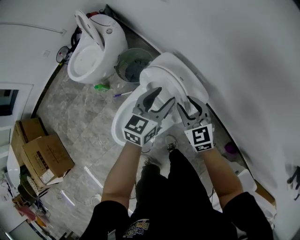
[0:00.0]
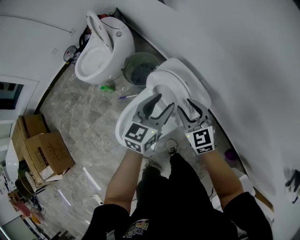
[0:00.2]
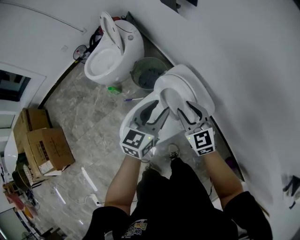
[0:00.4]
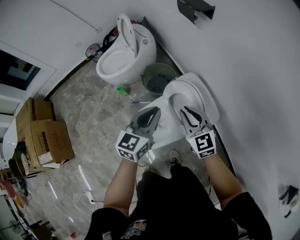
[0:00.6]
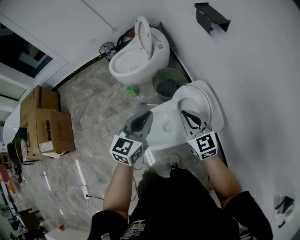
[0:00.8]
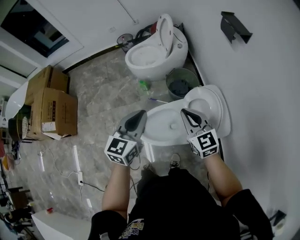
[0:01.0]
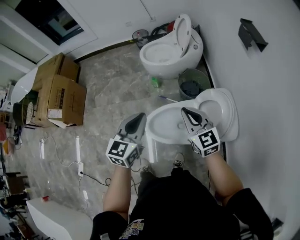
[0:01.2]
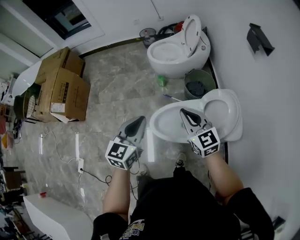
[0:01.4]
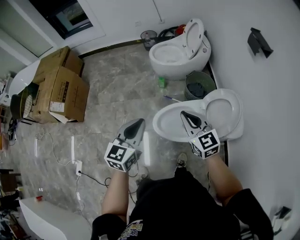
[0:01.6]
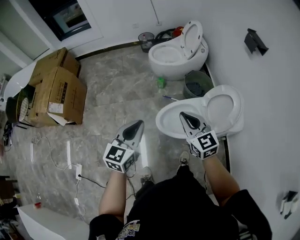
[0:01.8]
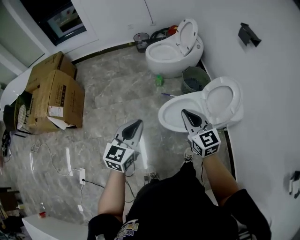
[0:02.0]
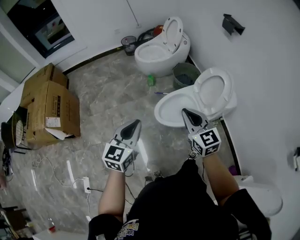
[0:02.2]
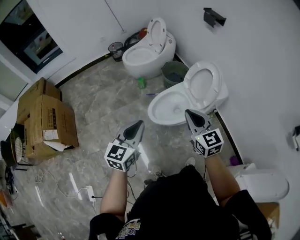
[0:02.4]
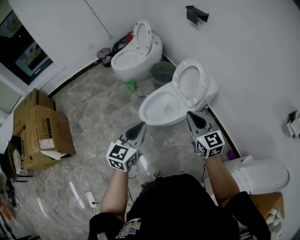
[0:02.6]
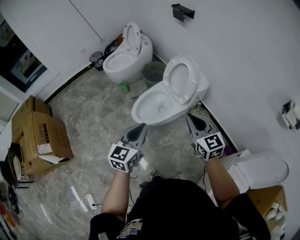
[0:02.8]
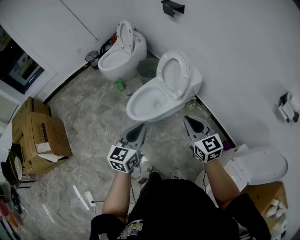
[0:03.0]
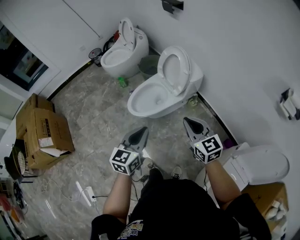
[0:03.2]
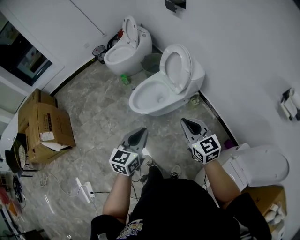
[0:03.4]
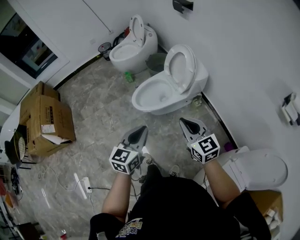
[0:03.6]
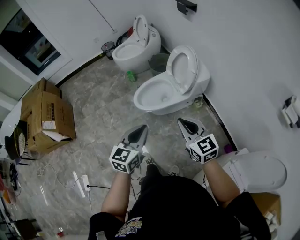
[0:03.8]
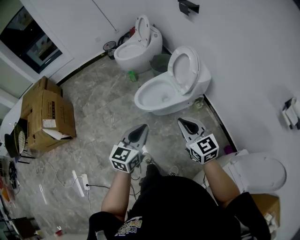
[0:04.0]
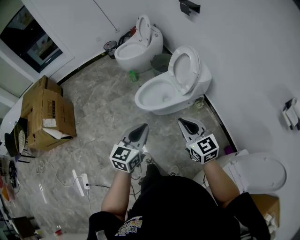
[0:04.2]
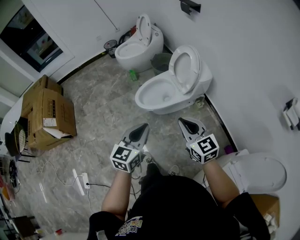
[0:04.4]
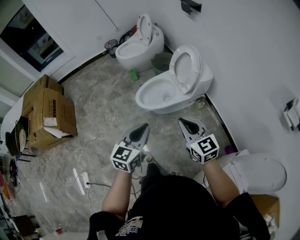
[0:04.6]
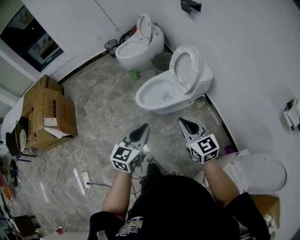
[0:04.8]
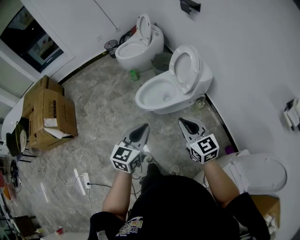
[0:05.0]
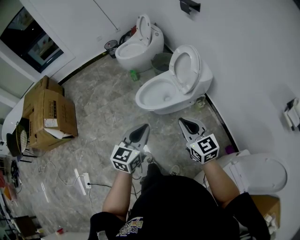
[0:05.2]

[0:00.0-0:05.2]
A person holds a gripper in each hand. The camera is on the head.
0:00.0 to 0:01.8: The two grippers travel together, roughly 50 cm. The right gripper swivels about 40 degrees, and closes, while the left gripper swivels some 40 degrees, and closes its fingers.
0:01.8 to 0:03.4: The left gripper moves some 30 cm, and rotates some 30 degrees, while the right gripper changes place by approximately 40 cm, and rotates roughly 30 degrees.
0:03.4 to 0:05.2: The grippers stay close to where they were, moving slightly.

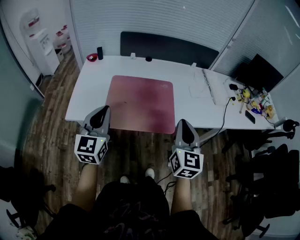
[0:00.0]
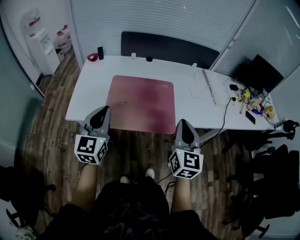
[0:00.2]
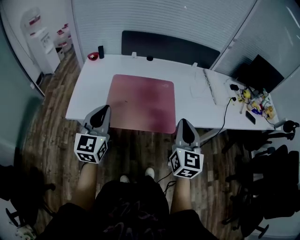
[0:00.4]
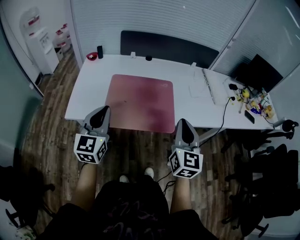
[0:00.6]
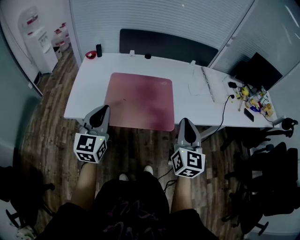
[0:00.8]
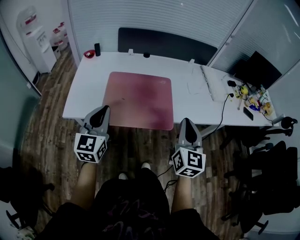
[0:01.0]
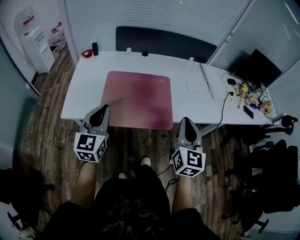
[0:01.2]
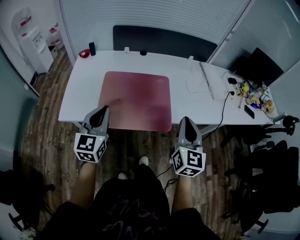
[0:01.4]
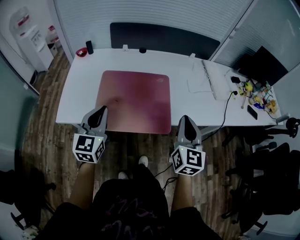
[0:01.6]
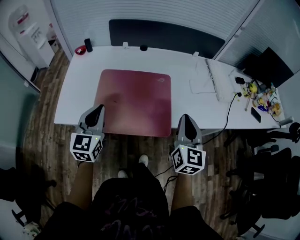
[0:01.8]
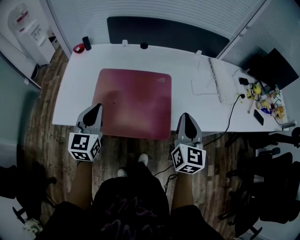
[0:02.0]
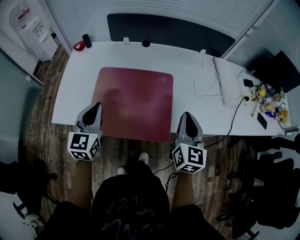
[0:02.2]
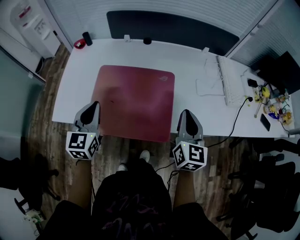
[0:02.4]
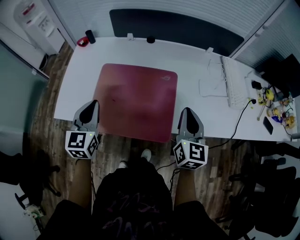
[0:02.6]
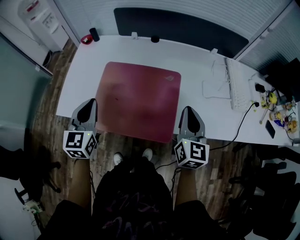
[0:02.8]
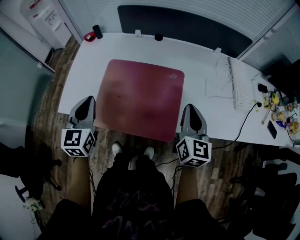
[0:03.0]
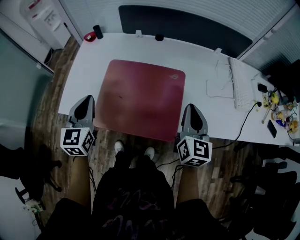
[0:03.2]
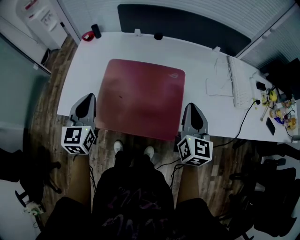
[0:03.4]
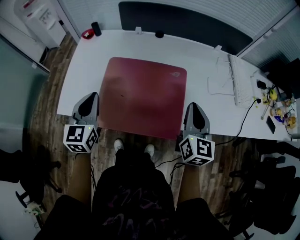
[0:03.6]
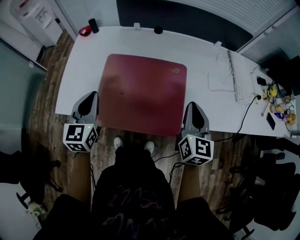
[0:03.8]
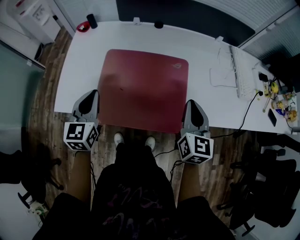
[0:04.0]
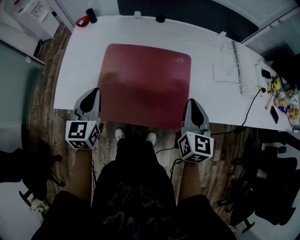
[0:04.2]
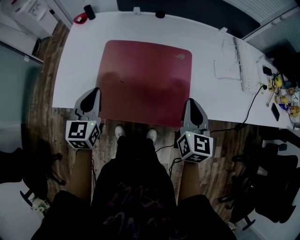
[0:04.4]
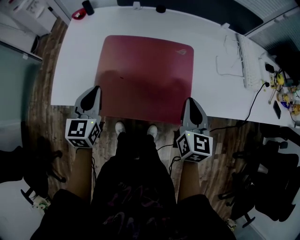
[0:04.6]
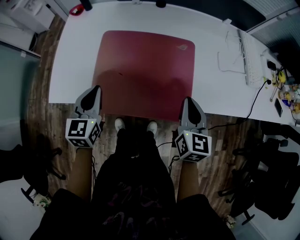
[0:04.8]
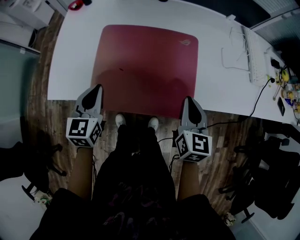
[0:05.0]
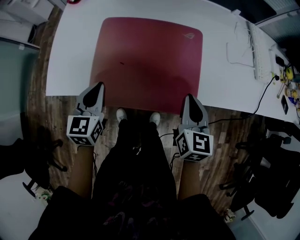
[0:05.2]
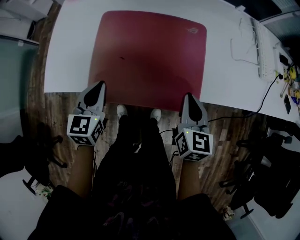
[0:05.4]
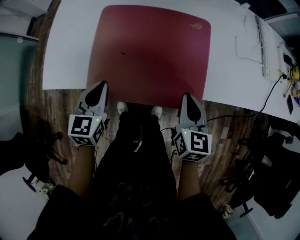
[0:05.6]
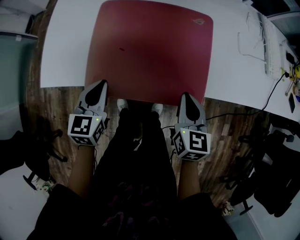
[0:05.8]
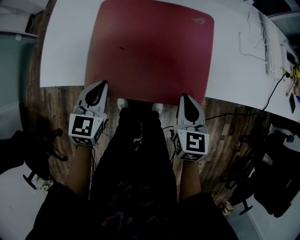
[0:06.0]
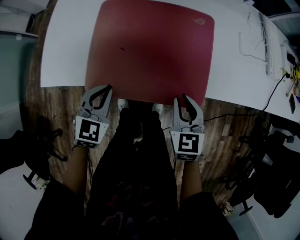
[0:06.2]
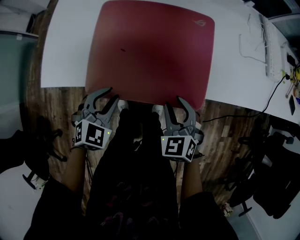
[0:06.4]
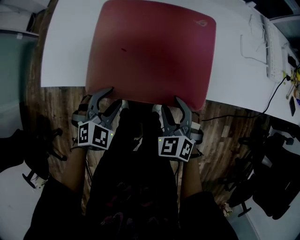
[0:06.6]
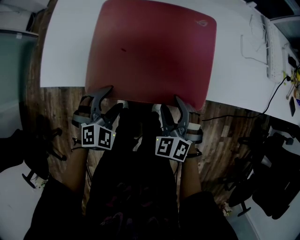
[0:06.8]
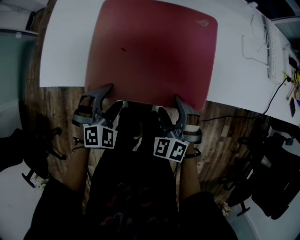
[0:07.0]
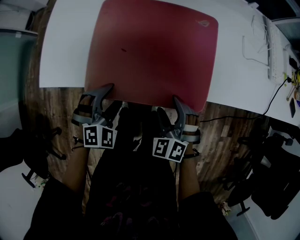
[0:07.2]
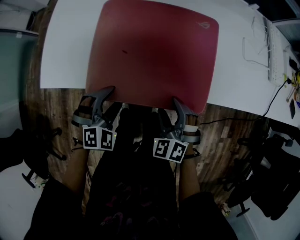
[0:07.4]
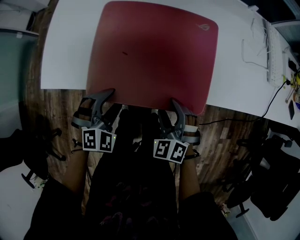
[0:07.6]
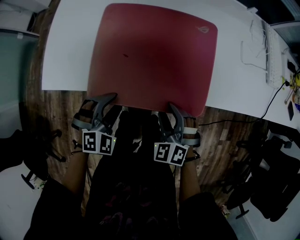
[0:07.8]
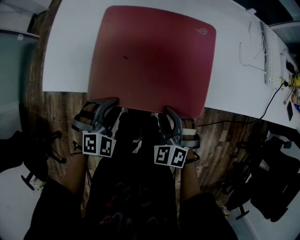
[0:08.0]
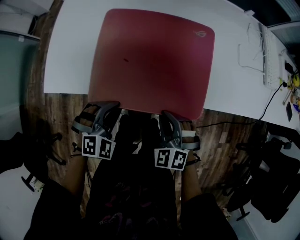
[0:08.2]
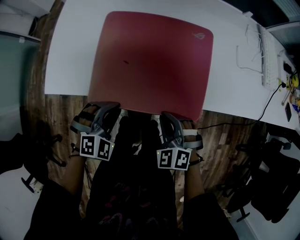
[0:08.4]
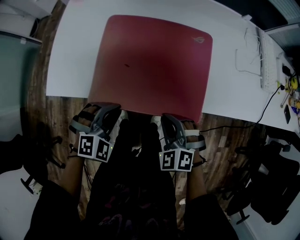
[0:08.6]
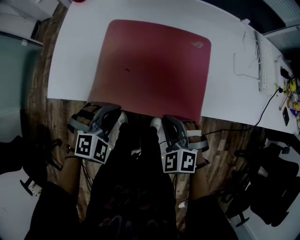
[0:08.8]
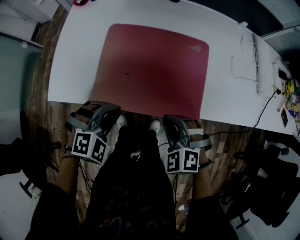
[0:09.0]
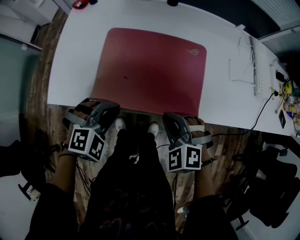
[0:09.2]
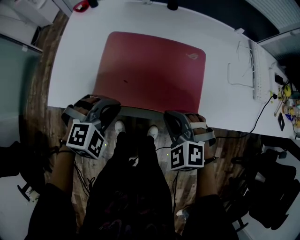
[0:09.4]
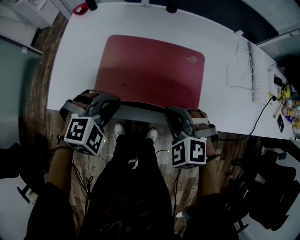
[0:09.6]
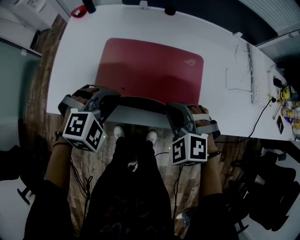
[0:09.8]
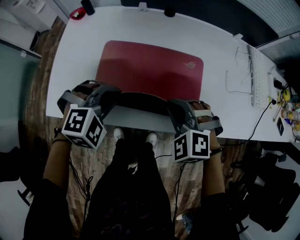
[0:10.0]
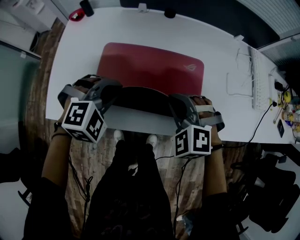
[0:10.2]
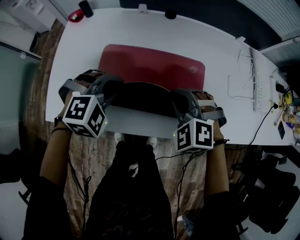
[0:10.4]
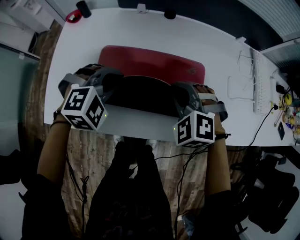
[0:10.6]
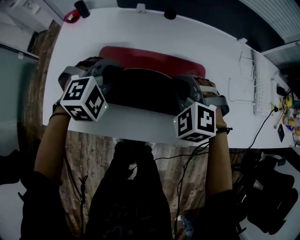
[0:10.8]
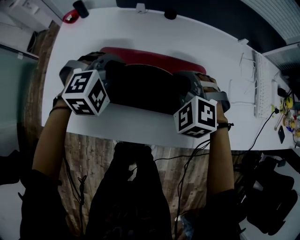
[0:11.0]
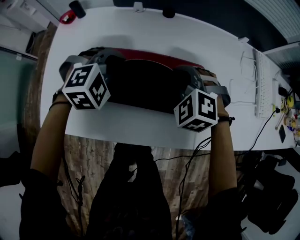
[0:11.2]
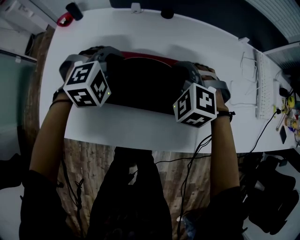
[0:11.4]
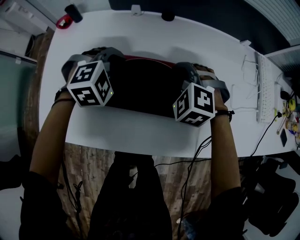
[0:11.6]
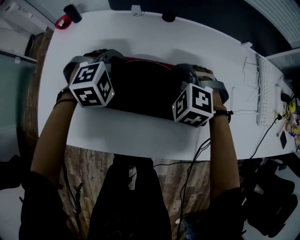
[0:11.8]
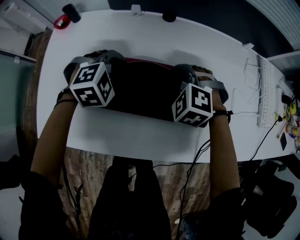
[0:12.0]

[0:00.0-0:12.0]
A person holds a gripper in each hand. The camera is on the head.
0:00.0 to 0:01.6: The right gripper is displaced forward by about 5 cm; the left gripper goes approximately 10 cm forward and downward.
0:01.6 to 0:03.0: The right gripper is displaced forward by about 15 cm, while the left gripper is displaced forward by some 10 cm.
0:03.0 to 0:04.4: The left gripper is displaced downward by some 10 cm; the right gripper shifts roughly 10 cm downward and to the left.
0:04.4 to 0:06.0: The left gripper shifts some 15 cm downward. Meanwhile the right gripper travels downward and backward by approximately 15 cm.
0:06.0 to 0:07.6: The left gripper changes place by about 5 cm, rolls clockwise, seen from behind, by about 50 degrees, and opens. Meanwhile the right gripper moves to the left, about 5 cm, rotates around the line of its fingers by some 50 degrees, counterclockwise from behind, and opens its fingers.
0:07.6 to 0:09.0: The grippers both shift upward by about 10 cm. The left gripper closes; the right gripper closes its fingers.
0:09.0 to 0:10.4: Both grippers move forward, roughly 20 cm.
0:10.4 to 0:12.0: Both grippers move forward and downward, roughly 20 cm.

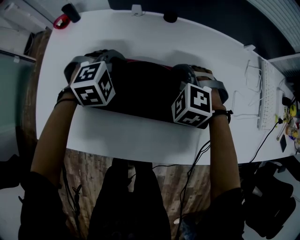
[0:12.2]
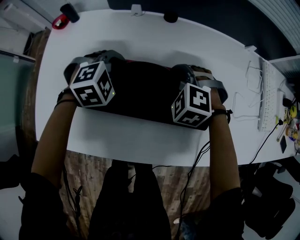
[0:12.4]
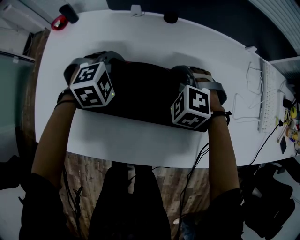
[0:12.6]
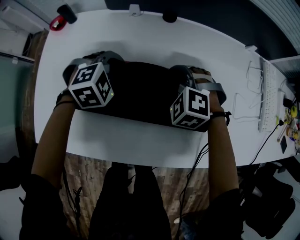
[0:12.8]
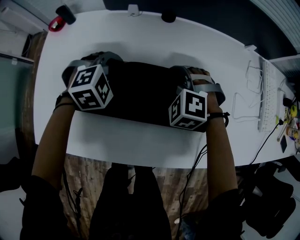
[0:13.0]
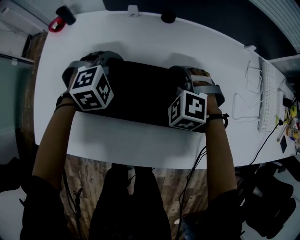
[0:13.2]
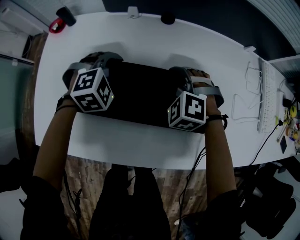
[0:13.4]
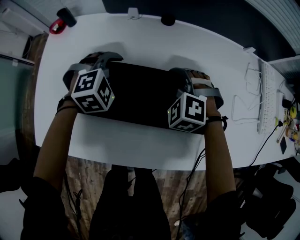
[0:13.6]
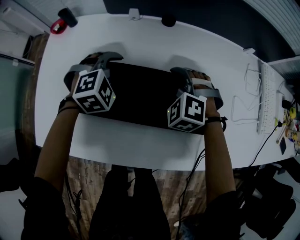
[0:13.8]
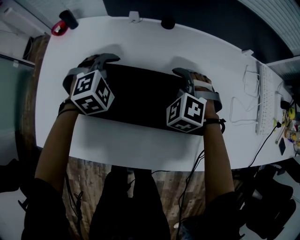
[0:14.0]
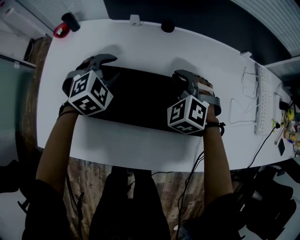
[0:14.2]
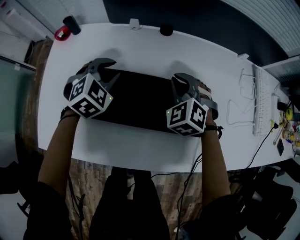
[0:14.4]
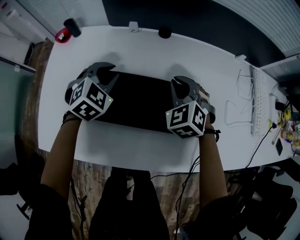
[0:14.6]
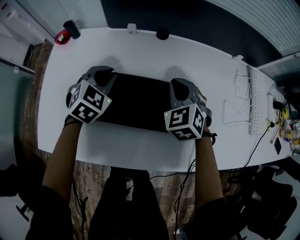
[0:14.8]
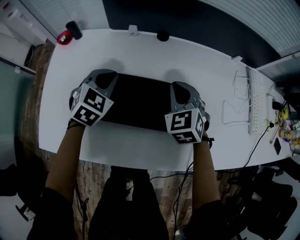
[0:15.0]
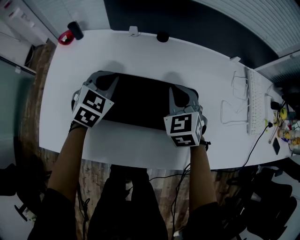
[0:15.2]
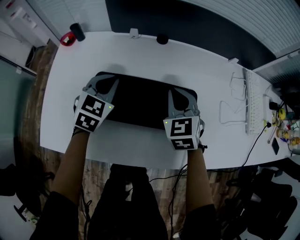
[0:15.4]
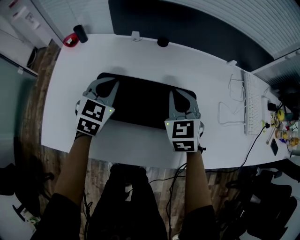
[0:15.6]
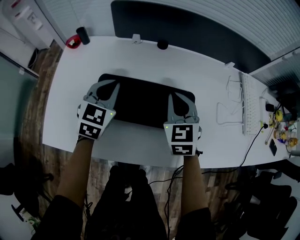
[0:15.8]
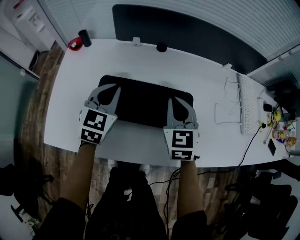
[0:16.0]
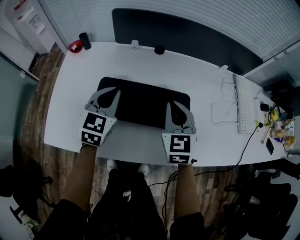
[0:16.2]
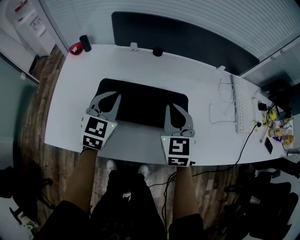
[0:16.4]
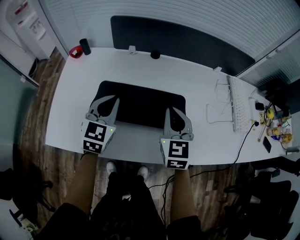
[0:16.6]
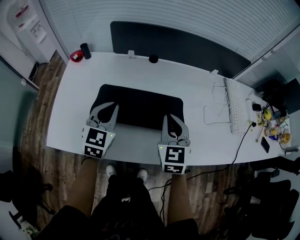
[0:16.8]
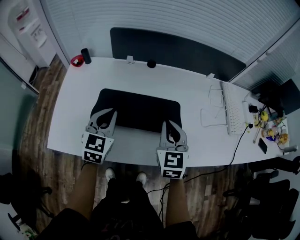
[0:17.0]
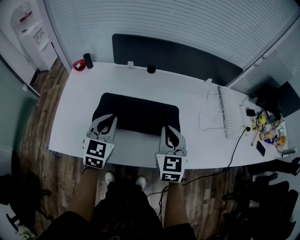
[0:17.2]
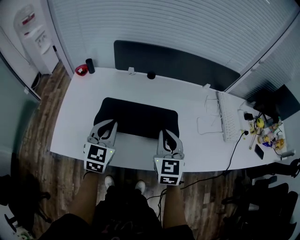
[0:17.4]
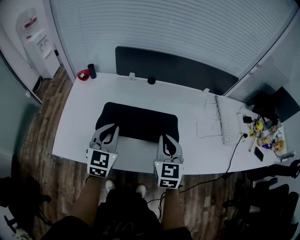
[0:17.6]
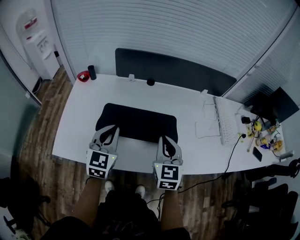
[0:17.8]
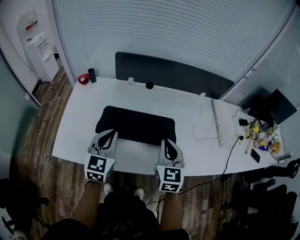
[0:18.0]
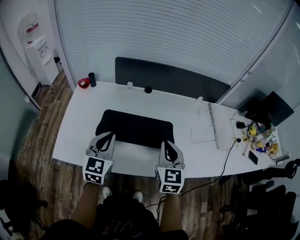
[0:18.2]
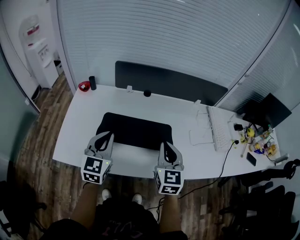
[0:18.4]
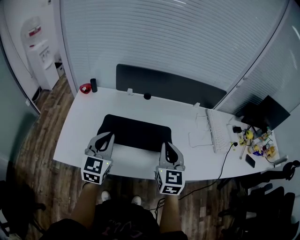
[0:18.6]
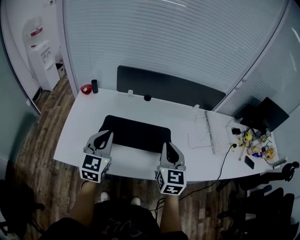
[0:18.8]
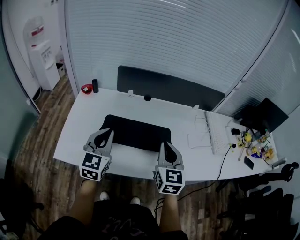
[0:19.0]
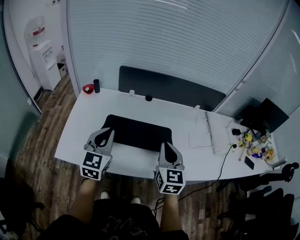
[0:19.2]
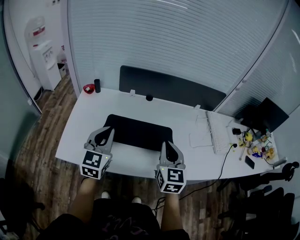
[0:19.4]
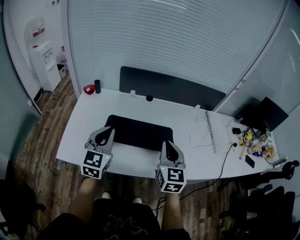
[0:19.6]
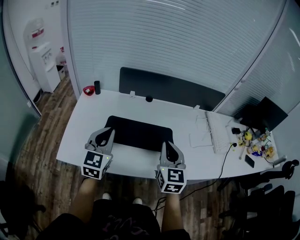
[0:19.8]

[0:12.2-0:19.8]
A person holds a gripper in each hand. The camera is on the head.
0:12.2 to 0:13.8: The left gripper opens its fingers.
0:13.8 to 0:15.2: Both grippers travel together upward, some 5 cm. The left gripper changes its angle by about 40 degrees, and closes up, while the right gripper swivels about 40 degrees.
0:15.2 to 0:16.8: Both grippers move backward and upward, roughly 15 cm. The right gripper changes its angle by some 20 degrees. Meanwhile the left gripper swivels about 20 degrees.
0:16.8 to 0:18.2: The grippers both shift backward and upward by about 10 cm.
0:18.2 to 0:19.8: The left gripper moves upward, some 5 cm; the right gripper shifts by roughly 5 cm.
